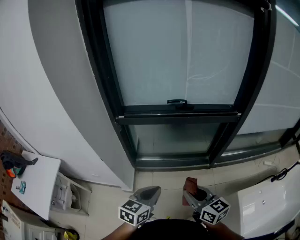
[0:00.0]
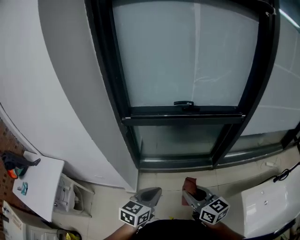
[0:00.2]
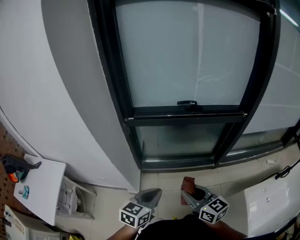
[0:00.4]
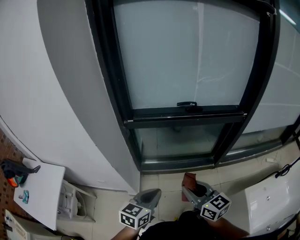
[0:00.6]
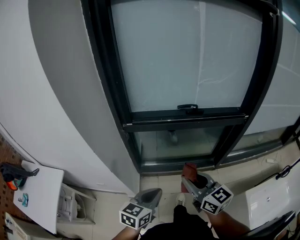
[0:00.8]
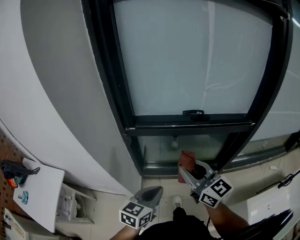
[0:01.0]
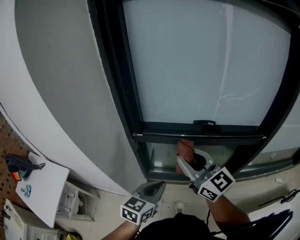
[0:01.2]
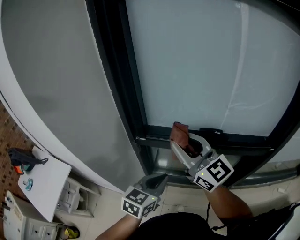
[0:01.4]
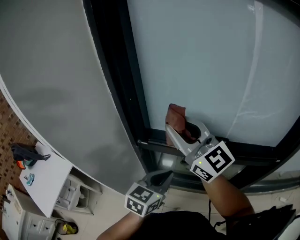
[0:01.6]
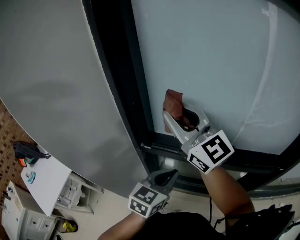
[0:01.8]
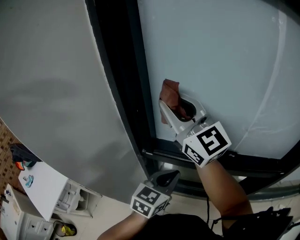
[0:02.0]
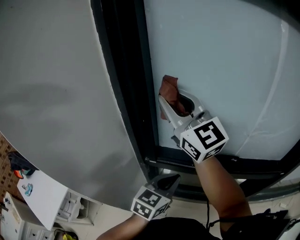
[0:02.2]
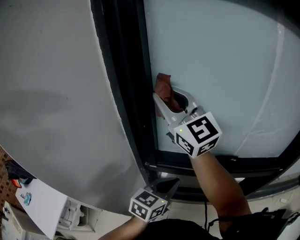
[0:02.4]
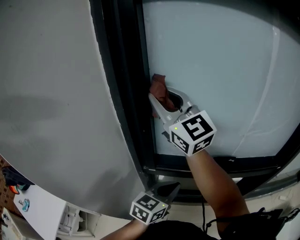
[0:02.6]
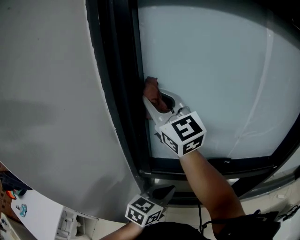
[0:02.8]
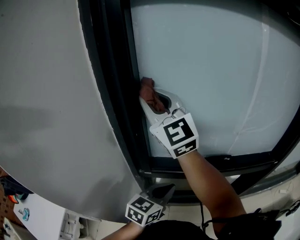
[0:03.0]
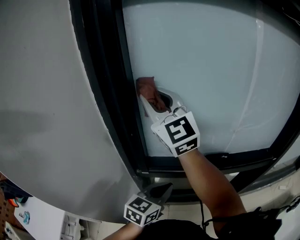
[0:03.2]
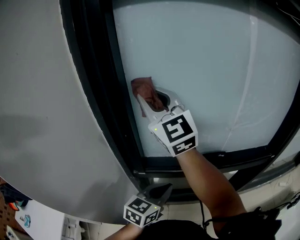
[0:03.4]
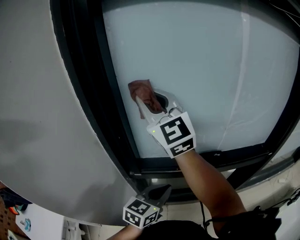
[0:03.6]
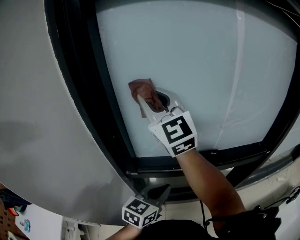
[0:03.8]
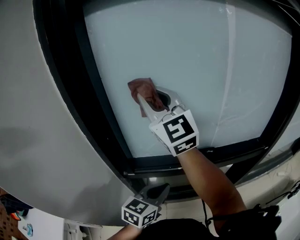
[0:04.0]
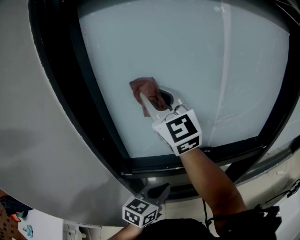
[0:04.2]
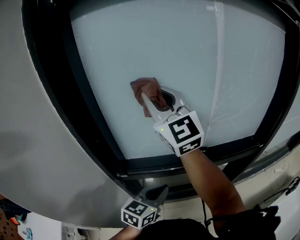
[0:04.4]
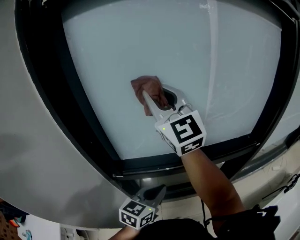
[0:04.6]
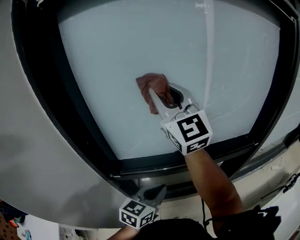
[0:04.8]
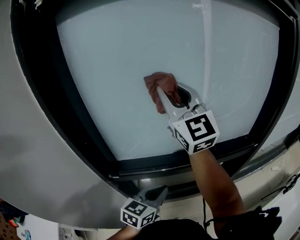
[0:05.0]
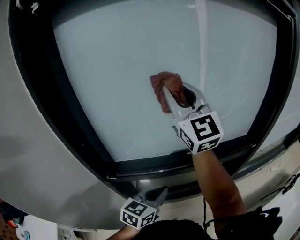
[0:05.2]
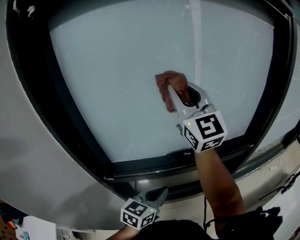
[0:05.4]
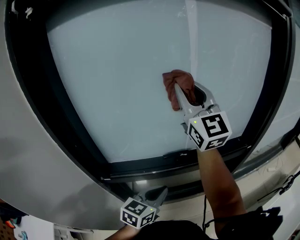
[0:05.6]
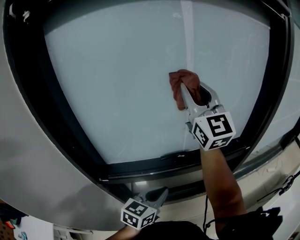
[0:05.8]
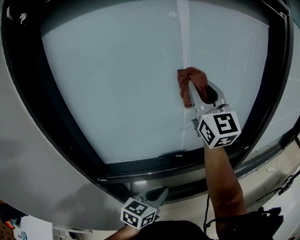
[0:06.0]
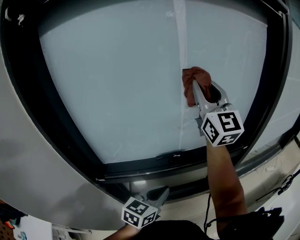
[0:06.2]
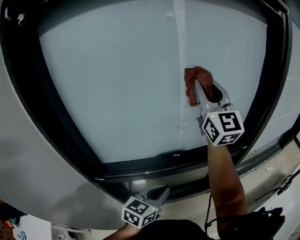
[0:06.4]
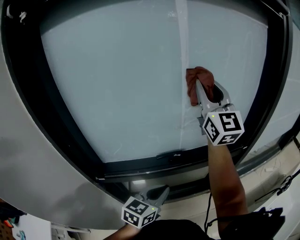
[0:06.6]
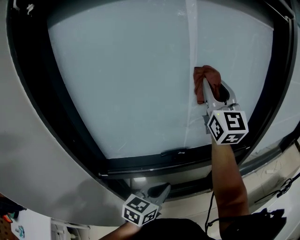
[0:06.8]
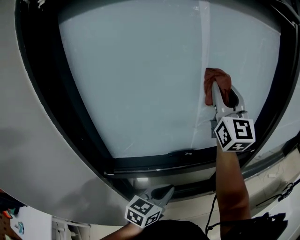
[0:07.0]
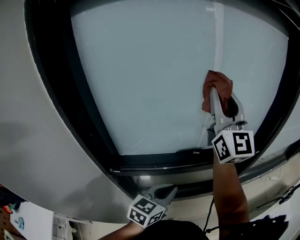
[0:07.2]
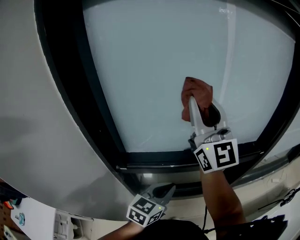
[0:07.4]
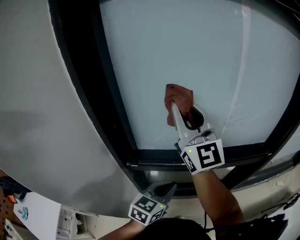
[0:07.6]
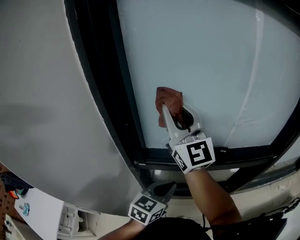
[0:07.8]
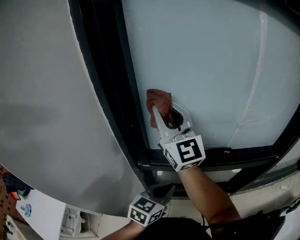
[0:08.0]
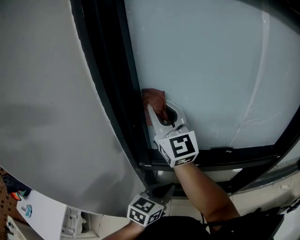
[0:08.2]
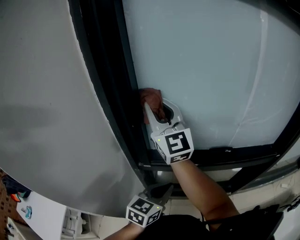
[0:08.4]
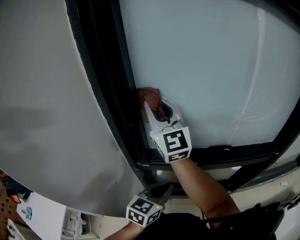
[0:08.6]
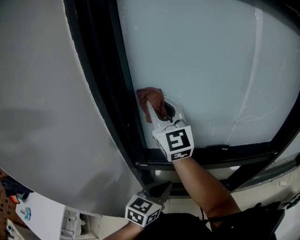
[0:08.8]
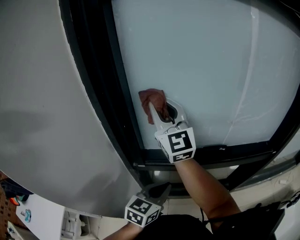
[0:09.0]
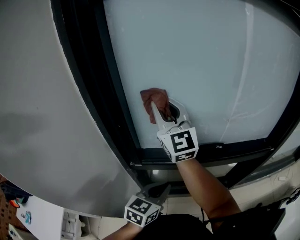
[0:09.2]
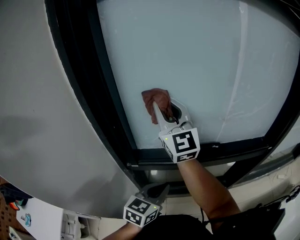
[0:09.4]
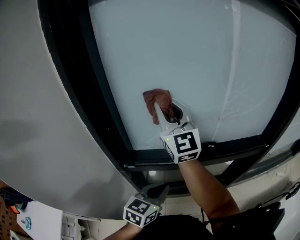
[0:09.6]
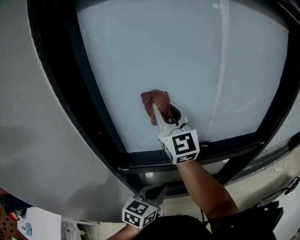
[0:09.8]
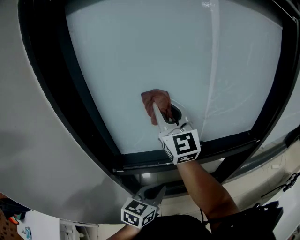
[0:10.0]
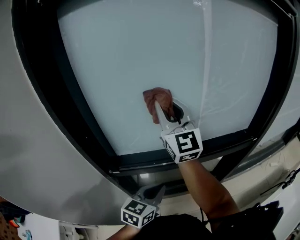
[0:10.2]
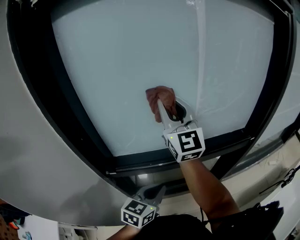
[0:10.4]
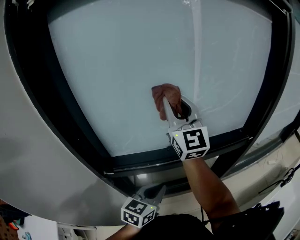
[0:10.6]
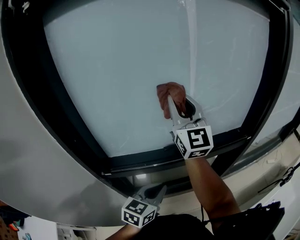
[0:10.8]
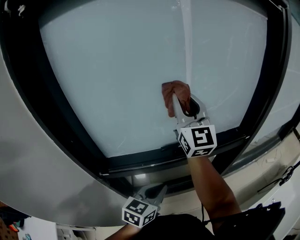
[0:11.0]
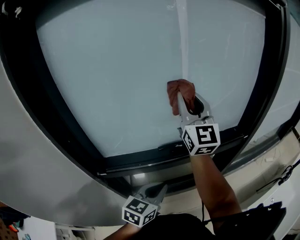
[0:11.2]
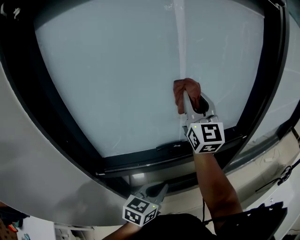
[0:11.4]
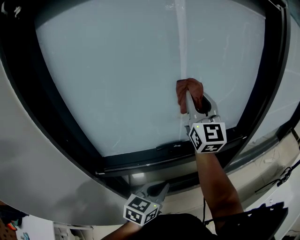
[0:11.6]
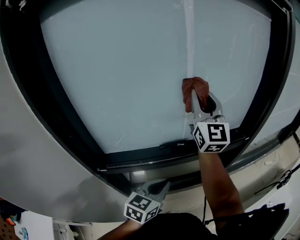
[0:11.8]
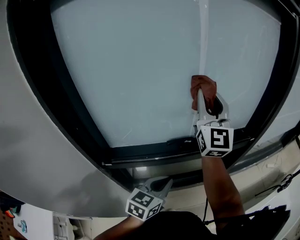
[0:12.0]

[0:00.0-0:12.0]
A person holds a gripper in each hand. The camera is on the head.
0.0 to 1.6 s: The right gripper is displaced forward, upward and to the left by roughly 50 cm, and swivels roughly 50 degrees; the left gripper moves forward, about 30 cm.
1.6 to 3.0 s: The right gripper goes roughly 20 cm forward, to the left and upward, and turns by about 30 degrees, while the left gripper shifts roughly 5 cm forward.
3.0 to 4.4 s: The right gripper moves to the right, roughly 15 cm. The left gripper shifts some 5 cm to the right.
4.4 to 6.0 s: The left gripper is displaced to the right by approximately 10 cm. Meanwhile the right gripper travels to the right by roughly 25 cm.
6.0 to 7.6 s: The right gripper travels to the left and backward by about 25 cm. The left gripper goes roughly 10 cm to the left.
7.6 to 9.0 s: The right gripper moves to the left, approximately 10 cm. The left gripper goes roughly 5 cm to the left.
9.0 to 10.4 s: The left gripper heads to the right, covering some 10 cm. The right gripper shifts approximately 20 cm to the right.
10.4 to 12.0 s: The left gripper ends up about 5 cm from where it was, while the right gripper moves to the right, about 15 cm.

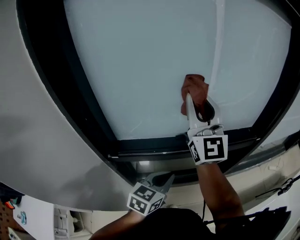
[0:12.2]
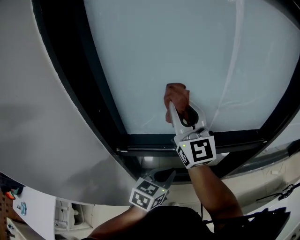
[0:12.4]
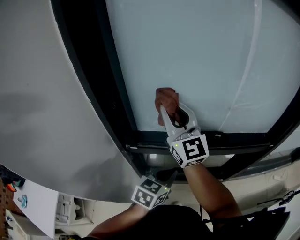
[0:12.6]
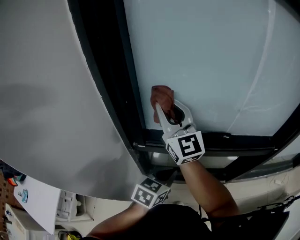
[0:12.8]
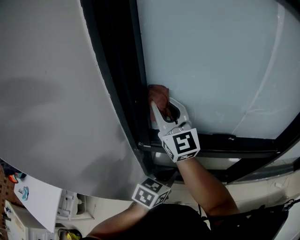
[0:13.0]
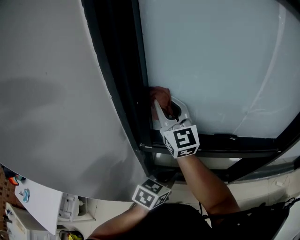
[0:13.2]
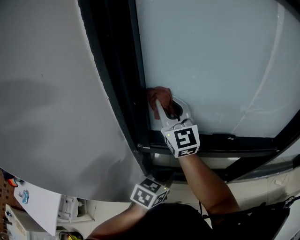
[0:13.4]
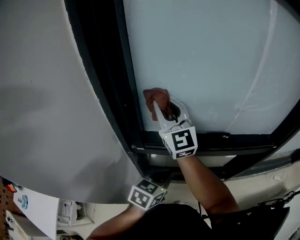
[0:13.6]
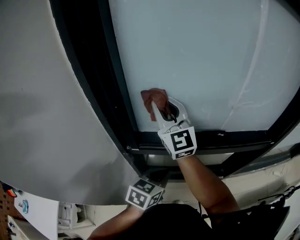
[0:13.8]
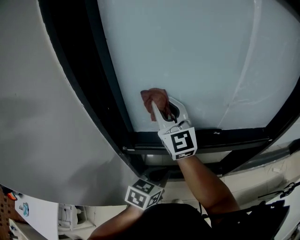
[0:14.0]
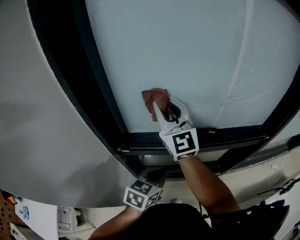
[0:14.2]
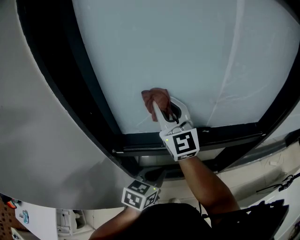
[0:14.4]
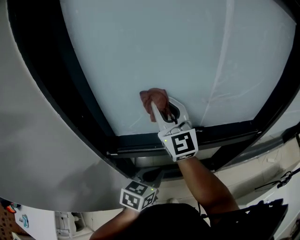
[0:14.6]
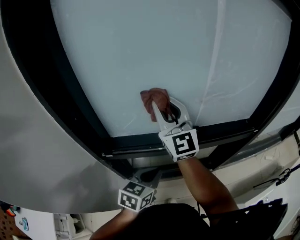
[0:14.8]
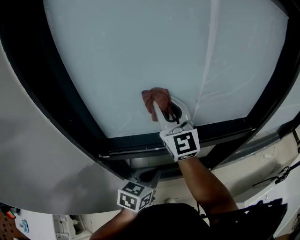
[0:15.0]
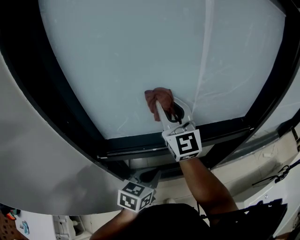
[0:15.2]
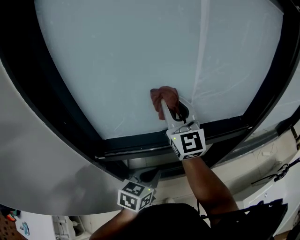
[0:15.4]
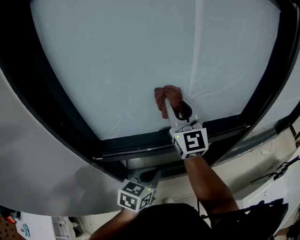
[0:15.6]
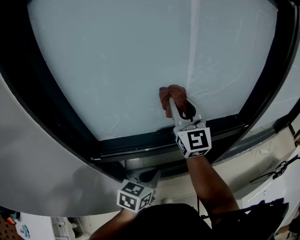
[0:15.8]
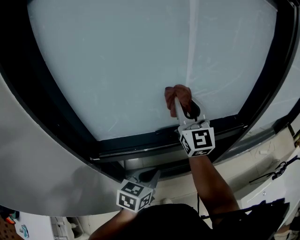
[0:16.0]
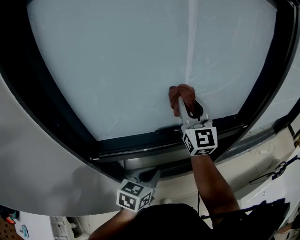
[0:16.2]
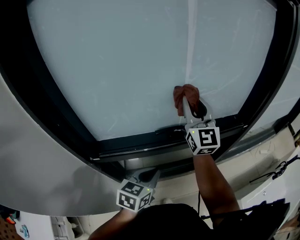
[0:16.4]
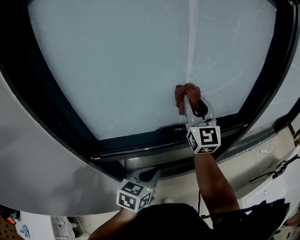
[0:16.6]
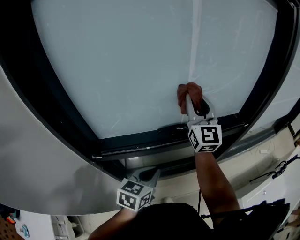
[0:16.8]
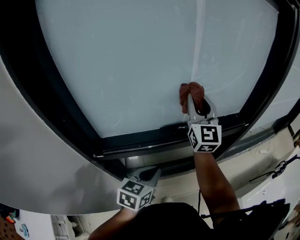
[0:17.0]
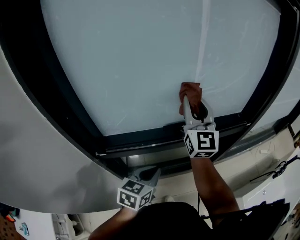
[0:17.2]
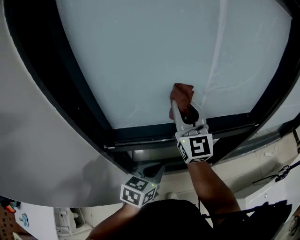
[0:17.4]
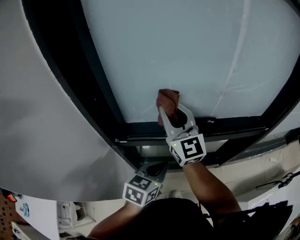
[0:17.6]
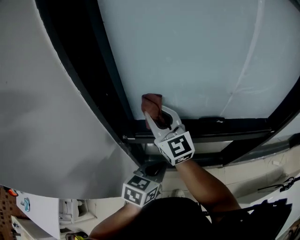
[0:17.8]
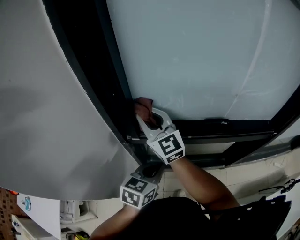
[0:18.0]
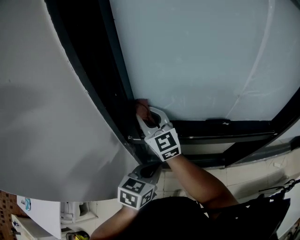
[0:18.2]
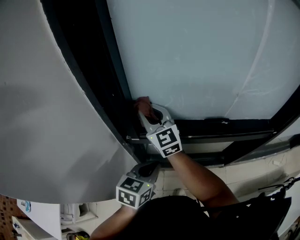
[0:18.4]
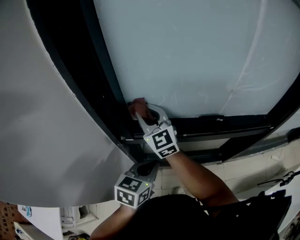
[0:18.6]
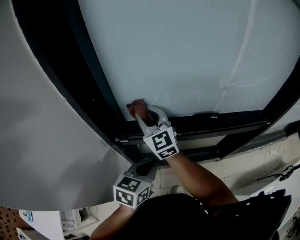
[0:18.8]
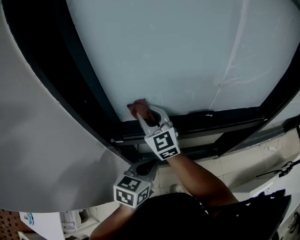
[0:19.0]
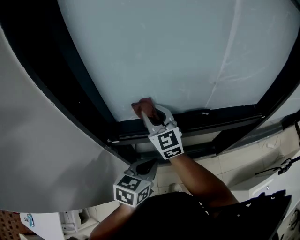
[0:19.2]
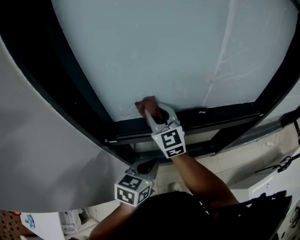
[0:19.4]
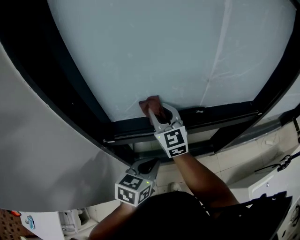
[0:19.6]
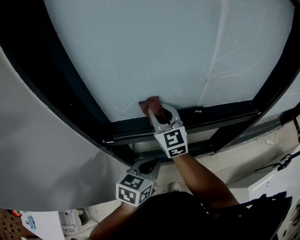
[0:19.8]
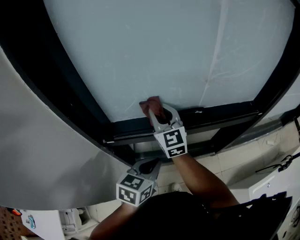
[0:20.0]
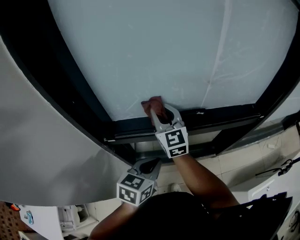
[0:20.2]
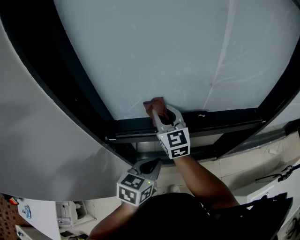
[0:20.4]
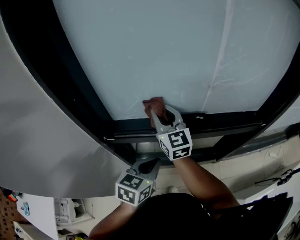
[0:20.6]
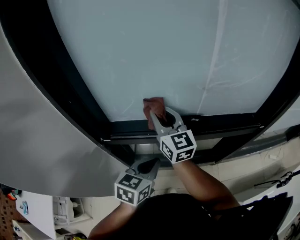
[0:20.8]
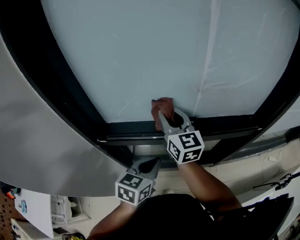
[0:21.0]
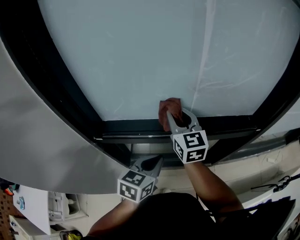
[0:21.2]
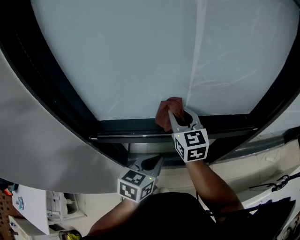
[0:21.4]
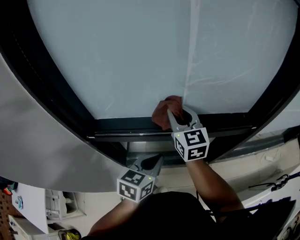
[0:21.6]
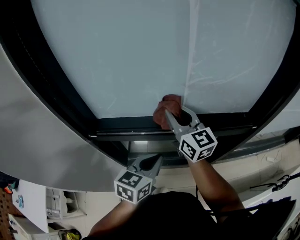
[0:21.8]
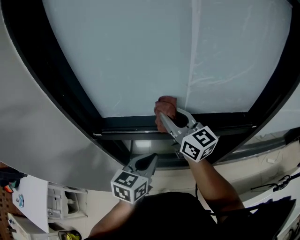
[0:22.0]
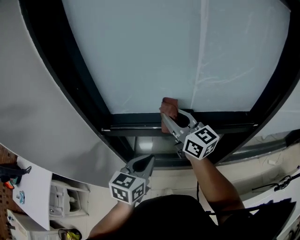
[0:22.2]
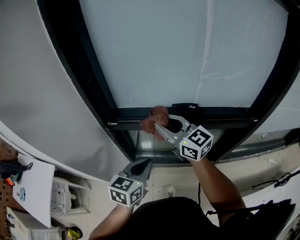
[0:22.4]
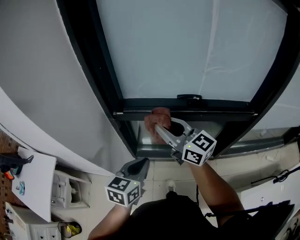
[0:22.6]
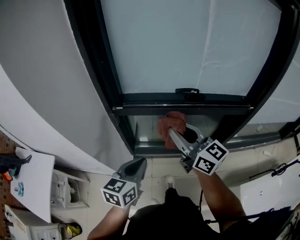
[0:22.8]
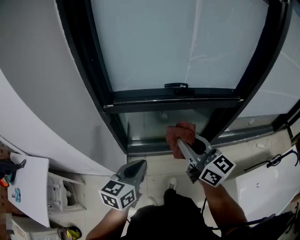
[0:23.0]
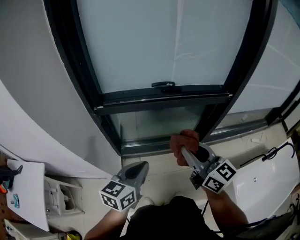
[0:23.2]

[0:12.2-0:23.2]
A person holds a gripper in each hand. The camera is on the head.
12.2 to 13.8 s: The right gripper shifts some 20 cm to the left, and changes its angle by roughly 20 degrees, while the left gripper is displaced to the left by roughly 10 cm.
13.8 to 15.4 s: The left gripper is displaced to the right by approximately 10 cm. The right gripper travels to the right by about 20 cm.
15.4 to 17.0 s: The right gripper goes some 10 cm to the right.
17.0 to 18.4 s: The left gripper shifts by some 15 cm. Meanwhile the right gripper moves about 40 cm, and changes its angle by approximately 40 degrees.
18.4 to 20.0 s: The left gripper heads to the right, covering about 10 cm, while the right gripper heads to the right, covering about 15 cm.
20.0 to 21.6 s: The grippers both shift to the right by roughly 15 cm.
21.6 to 23.2 s: The left gripper is displaced backward and to the left by roughly 25 cm. The right gripper heads backward, covering roughly 40 cm.

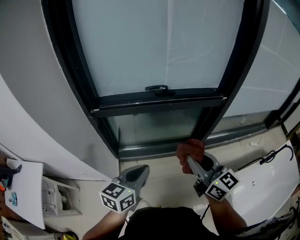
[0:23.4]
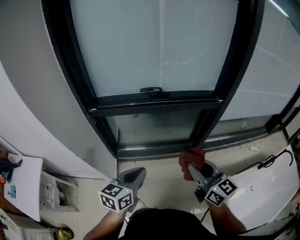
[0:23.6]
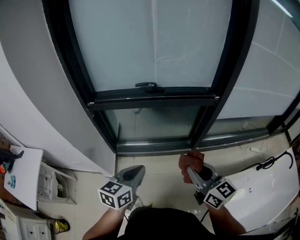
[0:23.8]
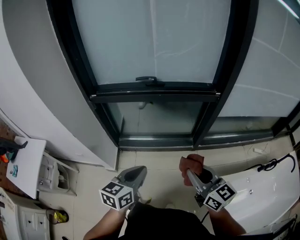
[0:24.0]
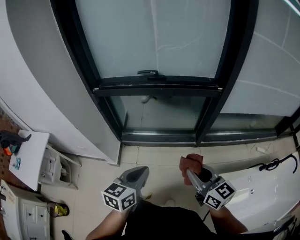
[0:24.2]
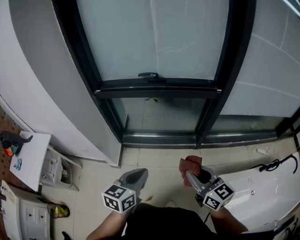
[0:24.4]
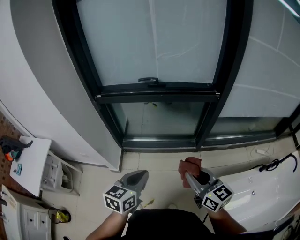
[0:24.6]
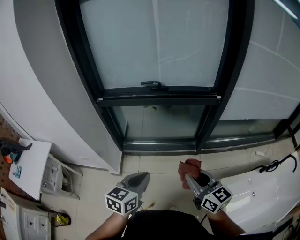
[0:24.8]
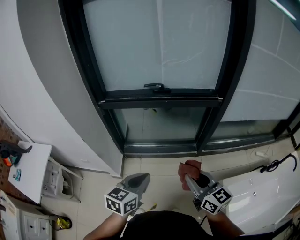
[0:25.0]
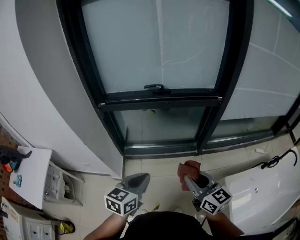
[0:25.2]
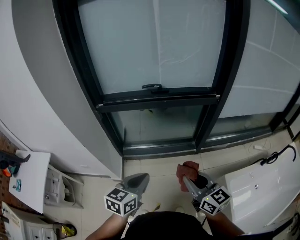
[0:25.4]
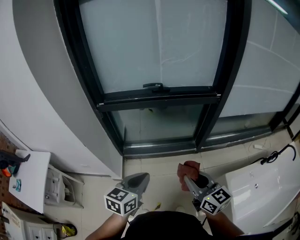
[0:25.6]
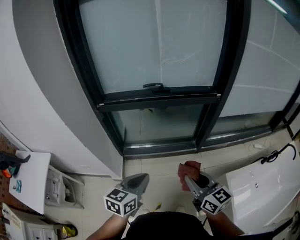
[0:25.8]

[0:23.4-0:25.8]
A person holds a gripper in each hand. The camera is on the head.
23.4 to 24.6 s: The left gripper heads backward and to the right, covering about 15 cm, while the right gripper shifts some 20 cm backward, to the right and downward.
24.6 to 25.8 s: The grippers both shift to the left by about 10 cm.
